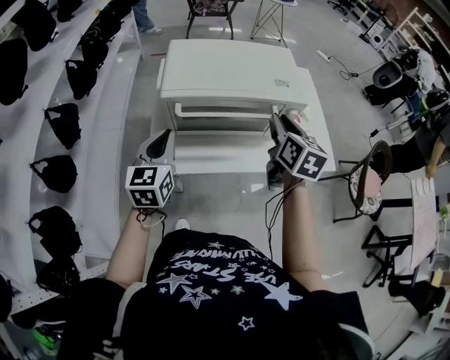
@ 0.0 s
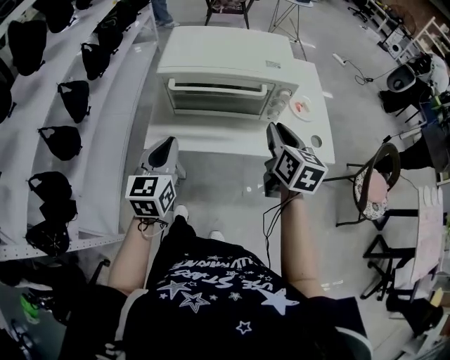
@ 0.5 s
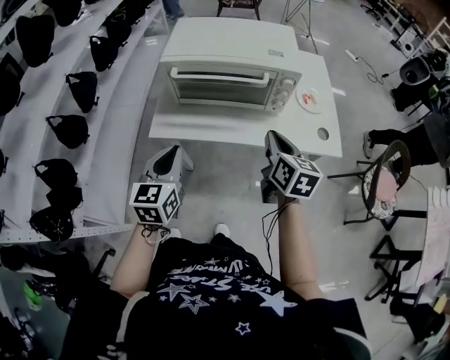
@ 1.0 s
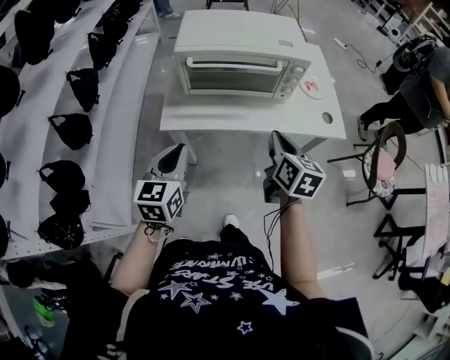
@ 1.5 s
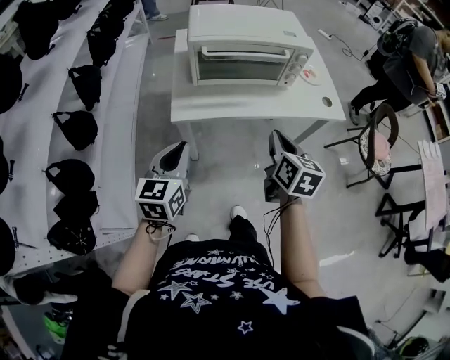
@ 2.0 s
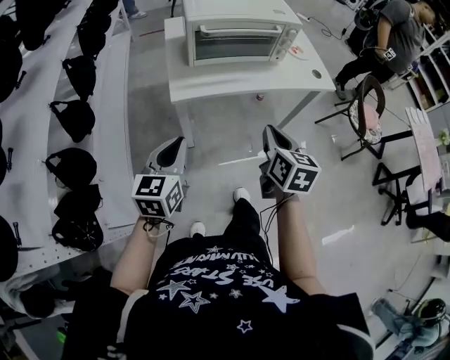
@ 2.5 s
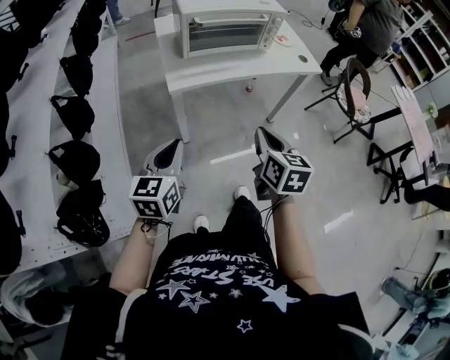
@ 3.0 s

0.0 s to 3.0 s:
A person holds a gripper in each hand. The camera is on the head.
0.0 to 1.5 s: Both grippers move backward, some 20 cm. The right gripper closes.
1.5 to 3.0 s: The grippers both shift backward and to the left by about 25 cm.

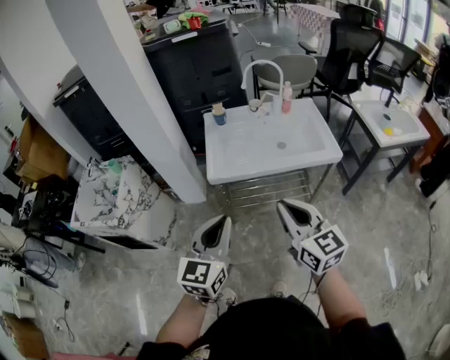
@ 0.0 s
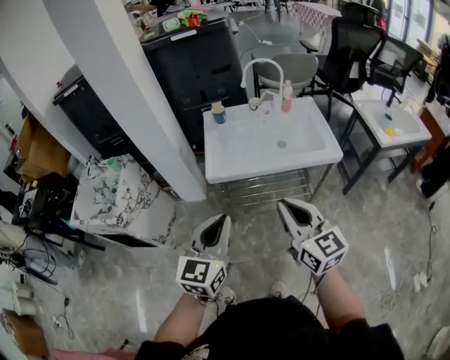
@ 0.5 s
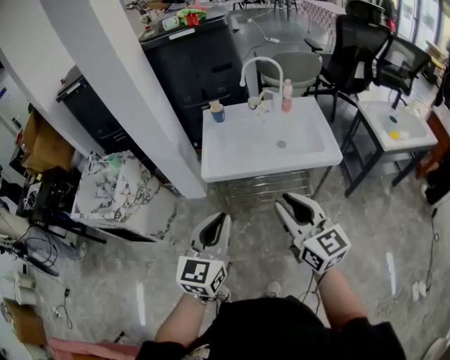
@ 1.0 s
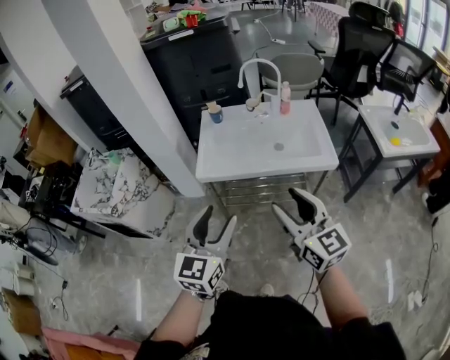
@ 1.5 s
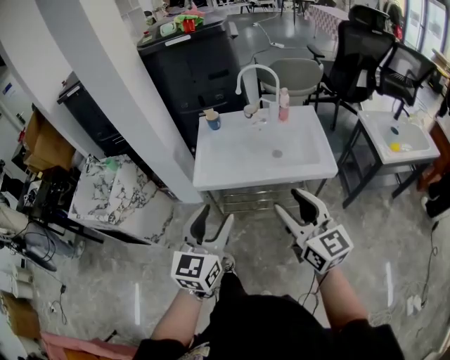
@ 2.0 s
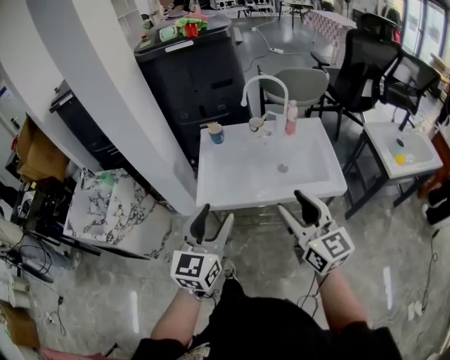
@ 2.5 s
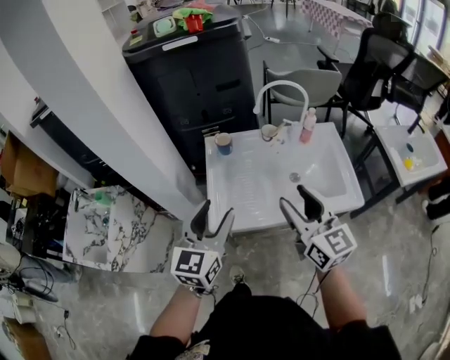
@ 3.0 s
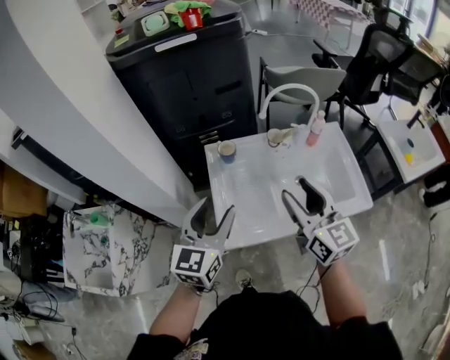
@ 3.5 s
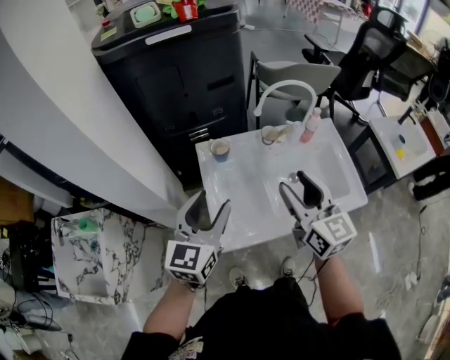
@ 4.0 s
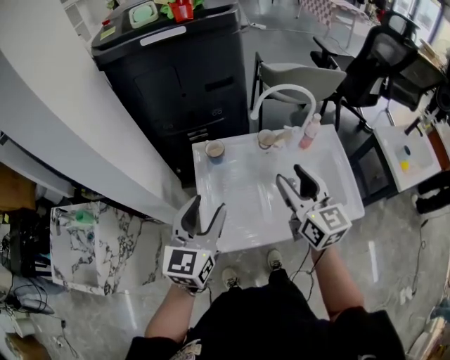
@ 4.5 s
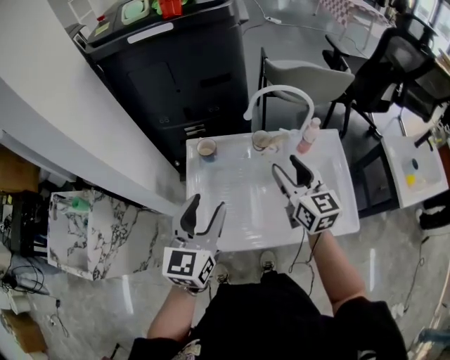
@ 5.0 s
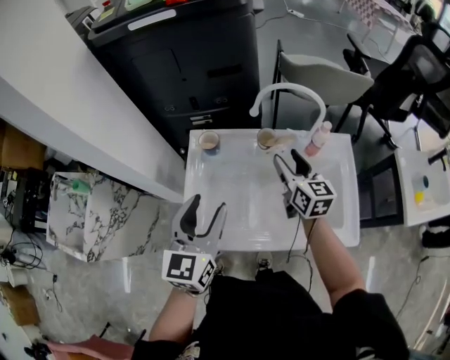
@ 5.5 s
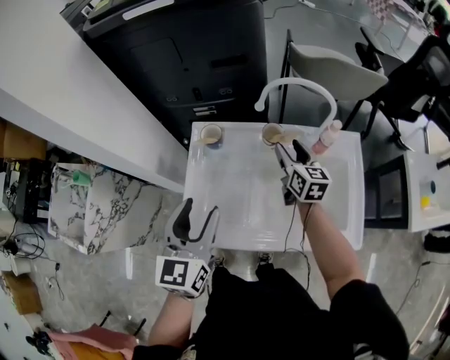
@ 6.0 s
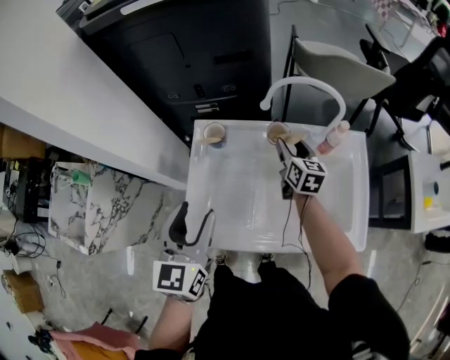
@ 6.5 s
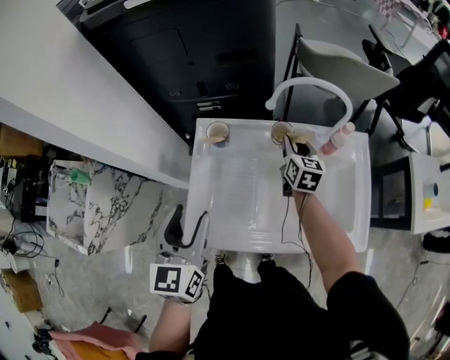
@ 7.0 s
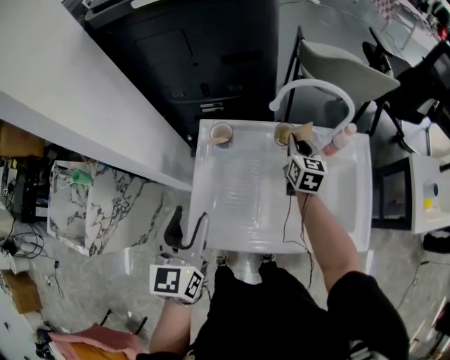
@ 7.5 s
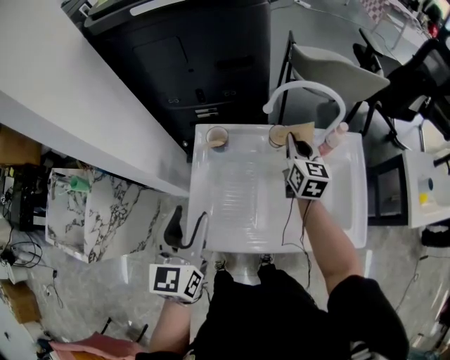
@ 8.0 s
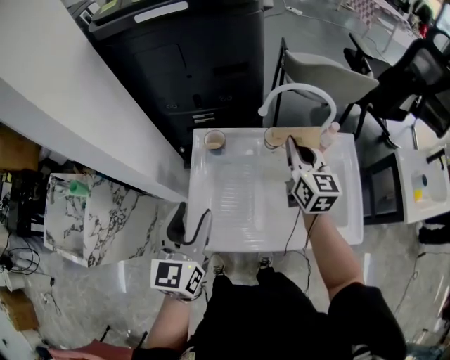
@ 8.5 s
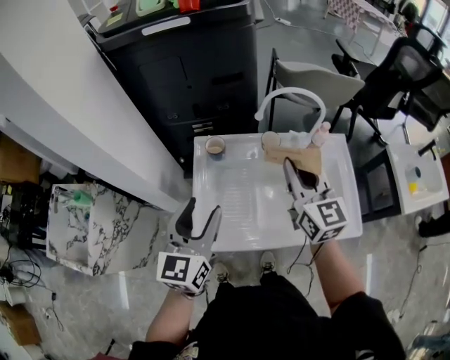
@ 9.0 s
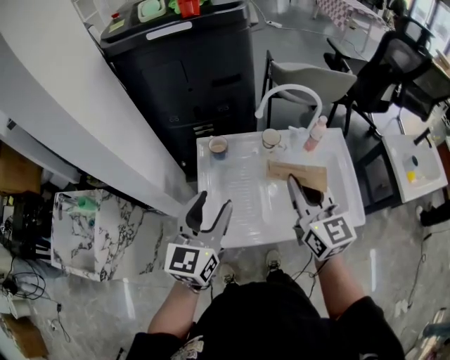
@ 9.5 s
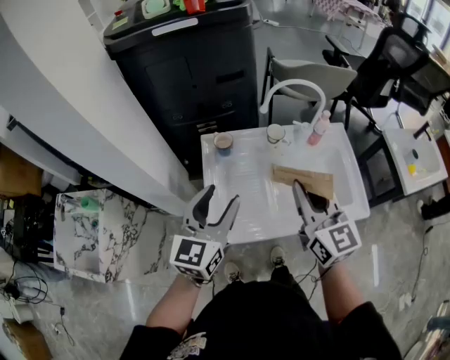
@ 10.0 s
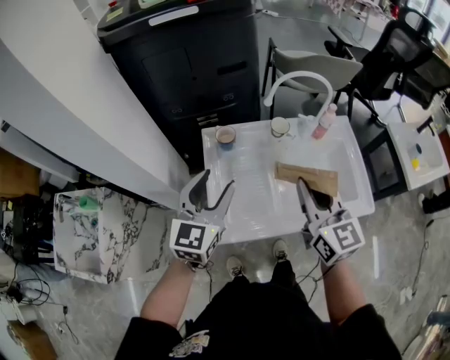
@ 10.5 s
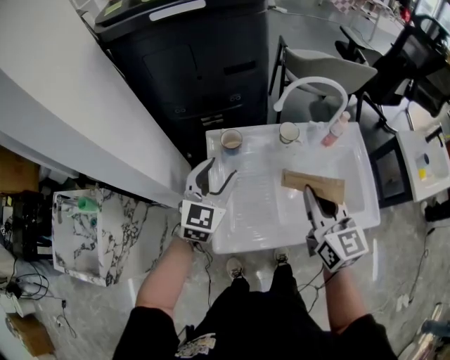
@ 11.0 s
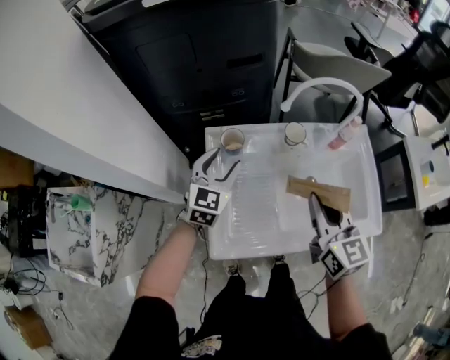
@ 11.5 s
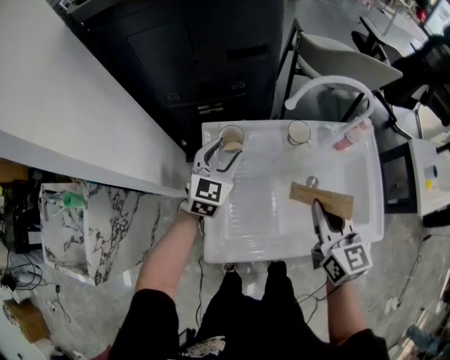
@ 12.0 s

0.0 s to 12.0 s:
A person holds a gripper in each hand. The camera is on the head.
0.0 to 2.0 s: The right gripper moves to the right, some 15 cm, and opens its fingers. Meanwhile the left gripper travels to the right and forward by approximately 10 cm, and opens.
2.0 to 4.0 s: Both grippers are carried forward and to the left, about 40 cm.
4.0 to 6.0 s: The right gripper travels forward, downward and to the right by approximately 35 cm; the left gripper goes roughly 10 cm to the right, and turns by approximately 20 degrees.
6.0 to 8.0 s: The left gripper shifts some 5 cm to the left; the right gripper closes its fingers.
8.0 to 10.0 s: The left gripper travels upward by roughly 5 cm, and rotates roughly 20 degrees, while the right gripper moves backward and upward, approximately 30 cm.
10.0 to 12.0 s: The left gripper heads forward and downward, covering some 30 cm; the right gripper goes roughly 15 cm downward and forward.

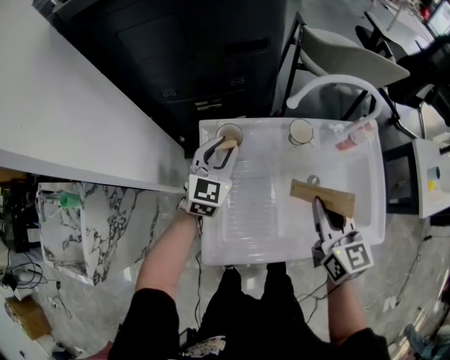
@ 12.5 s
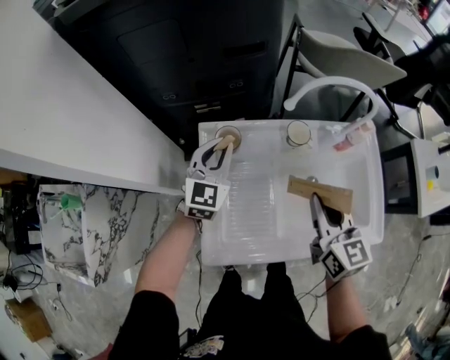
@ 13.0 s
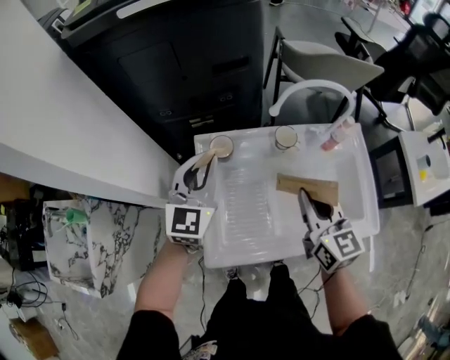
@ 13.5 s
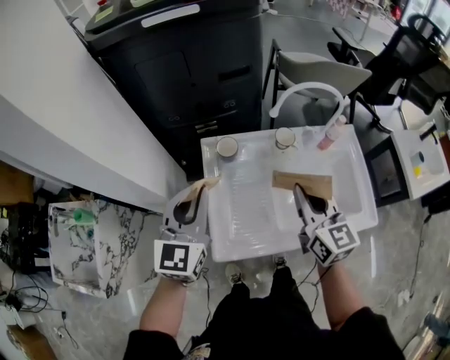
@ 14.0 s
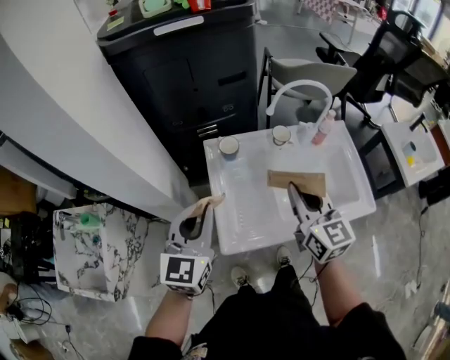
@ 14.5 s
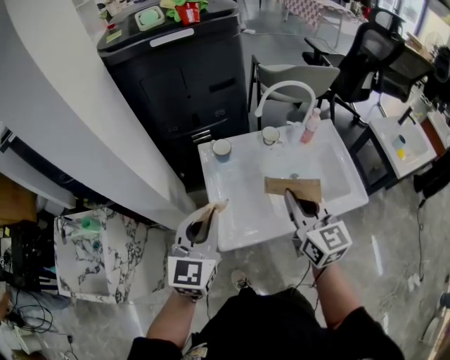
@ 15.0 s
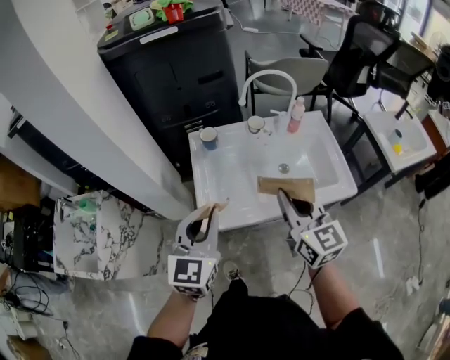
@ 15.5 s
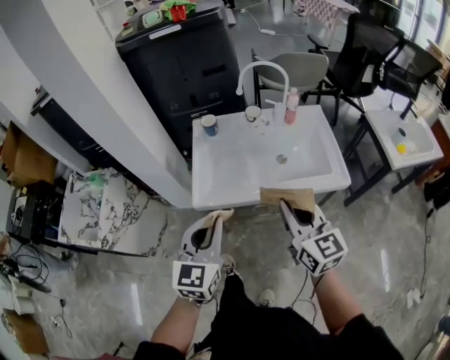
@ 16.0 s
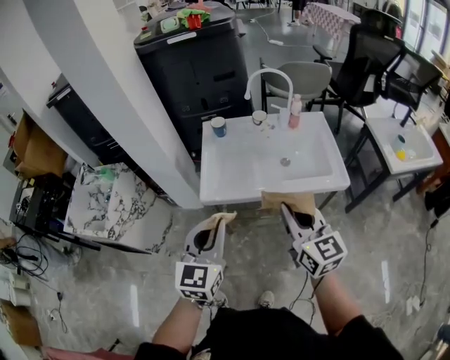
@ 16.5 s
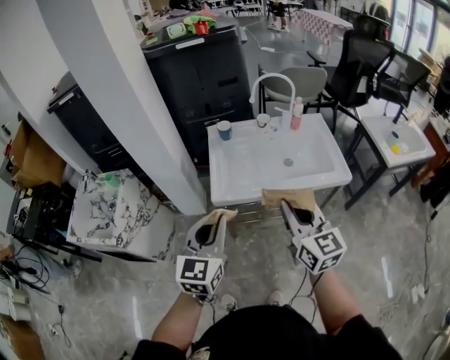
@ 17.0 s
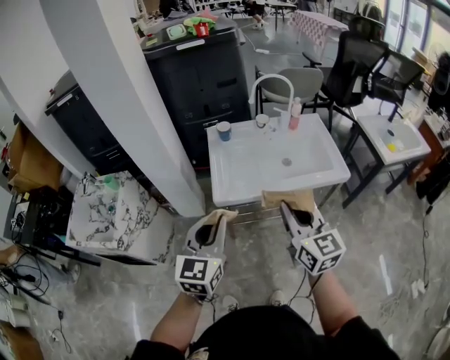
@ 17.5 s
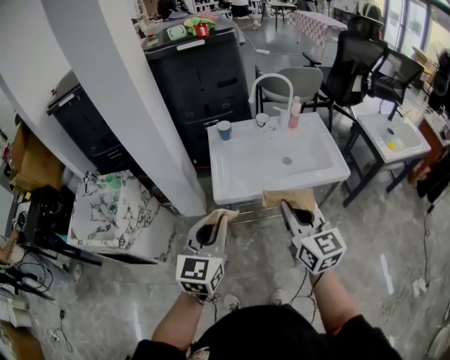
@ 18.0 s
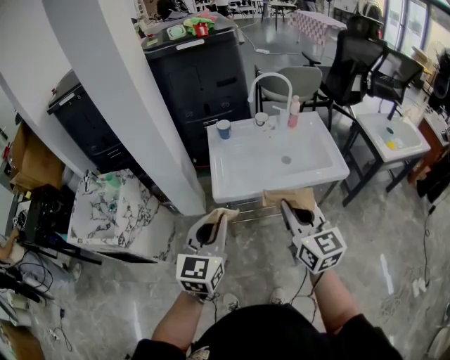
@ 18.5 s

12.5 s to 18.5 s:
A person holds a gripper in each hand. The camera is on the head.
12.5 to 14.5 s: The right gripper goes about 15 cm upward, backward and to the left, while the left gripper heads backward and upward, covering roughly 30 cm, and closes.
14.5 to 16.5 s: The left gripper goes some 35 cm backward and to the right. Meanwhile the right gripper moves backward, roughly 30 cm.
16.5 to 18.5 s: The left gripper goes approximately 10 cm to the left, while the right gripper travels to the left and backward by some 10 cm.

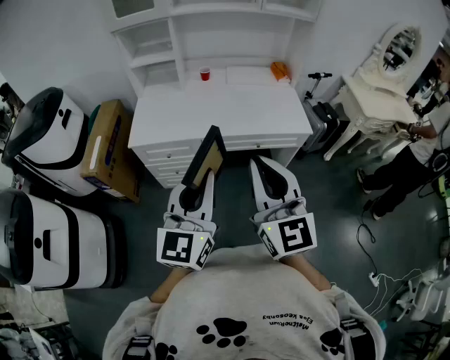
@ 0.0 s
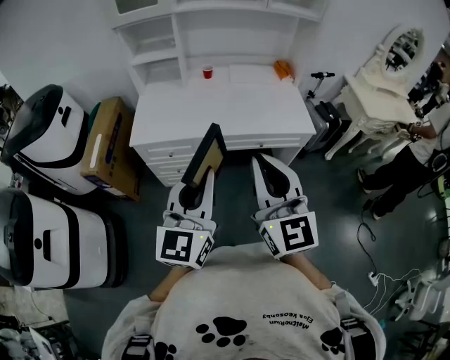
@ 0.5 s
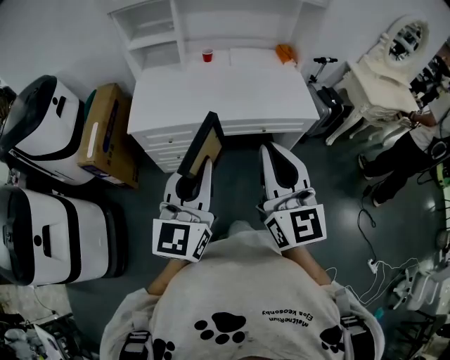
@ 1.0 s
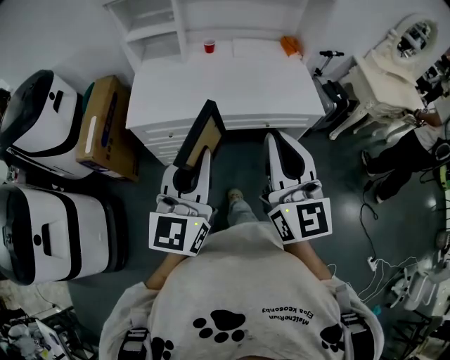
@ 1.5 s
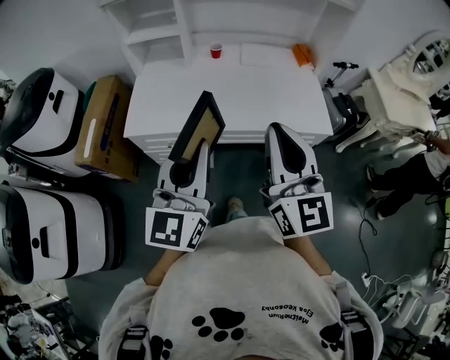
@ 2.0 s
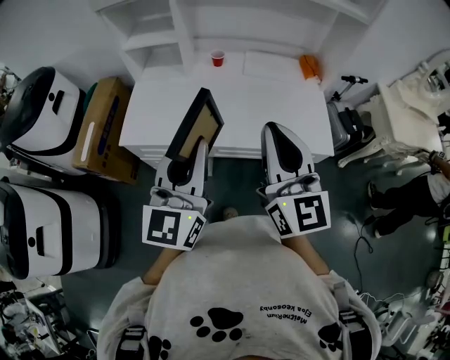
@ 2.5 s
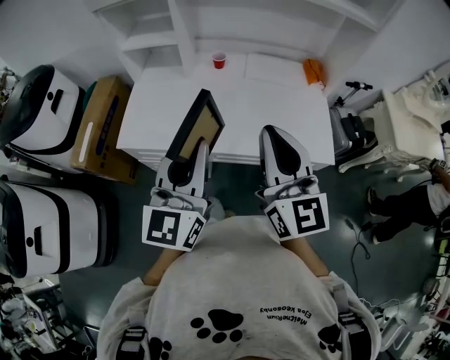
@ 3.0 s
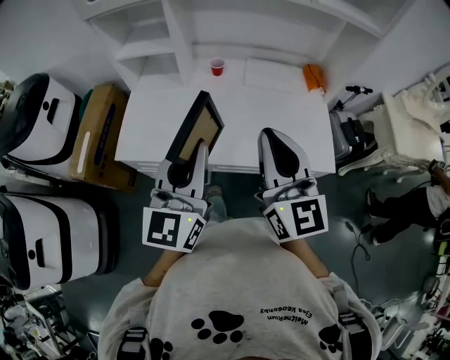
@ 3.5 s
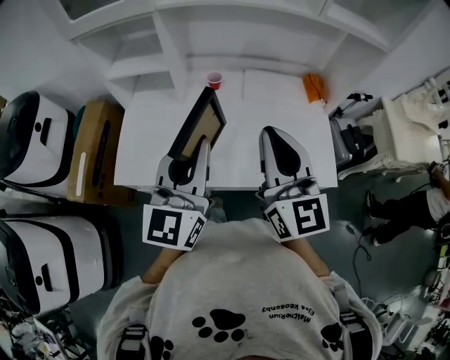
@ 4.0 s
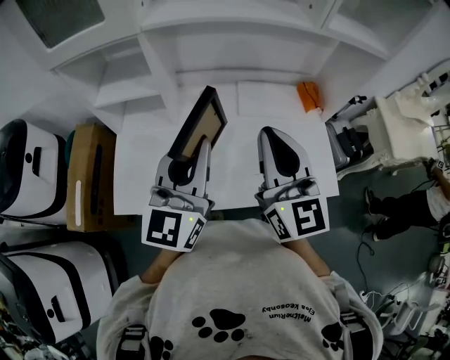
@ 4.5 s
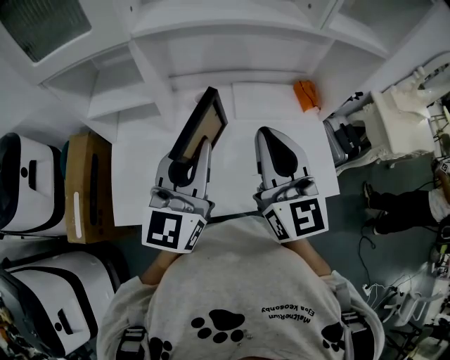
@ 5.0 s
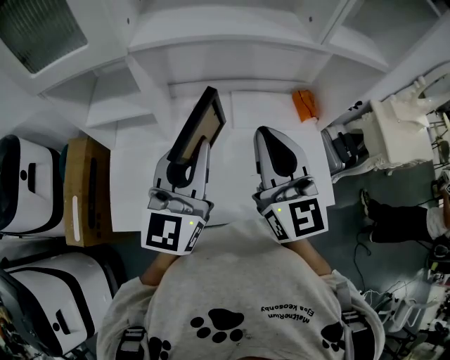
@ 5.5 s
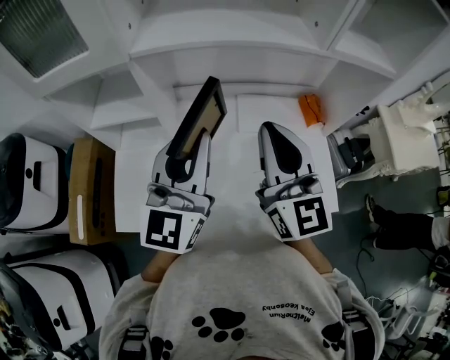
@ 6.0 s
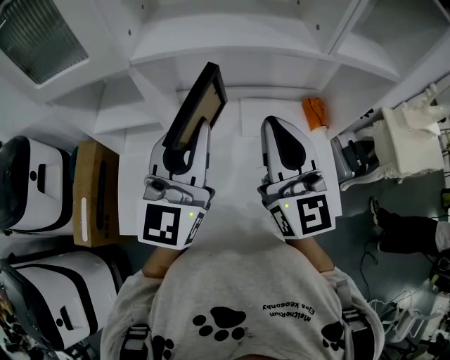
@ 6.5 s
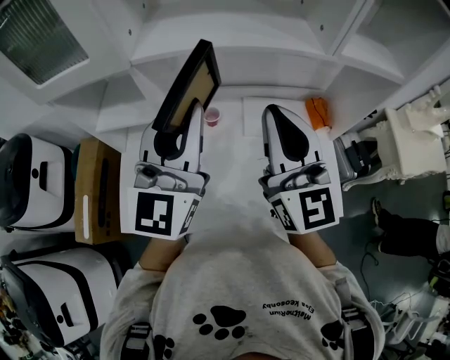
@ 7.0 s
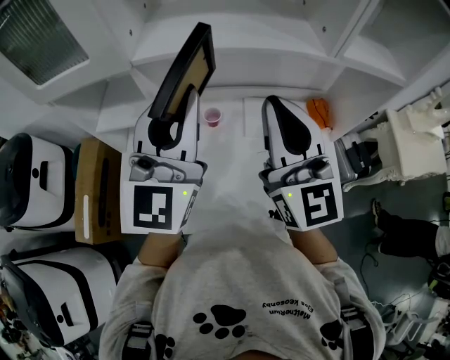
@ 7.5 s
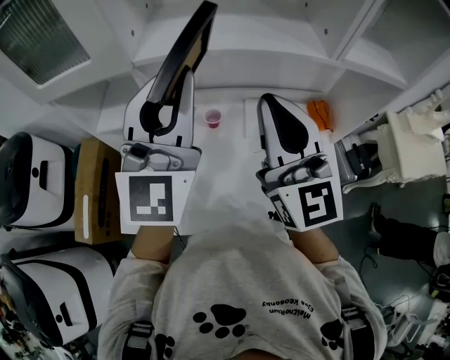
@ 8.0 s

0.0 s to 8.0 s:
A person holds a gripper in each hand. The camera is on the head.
0.0 to 2.0 s: The grippers both shift forward by some 15 cm.
2.0 to 4.0 s: The grippers both shift forward by some 30 cm.
4.0 to 6.0 s: Both grippers travel together forward, about 15 cm.
6.0 to 8.0 s: The right gripper shifts some 5 cm upward. The left gripper goes some 10 cm upward and forward, and changes its angle by approximately 20 degrees.
